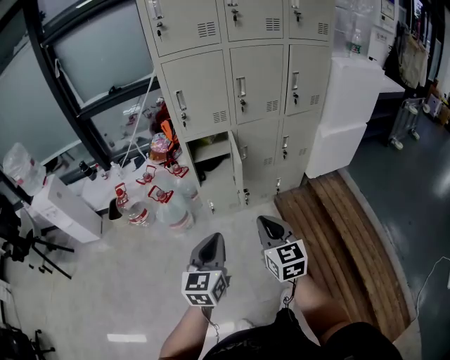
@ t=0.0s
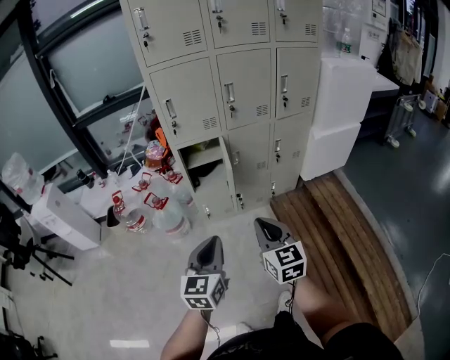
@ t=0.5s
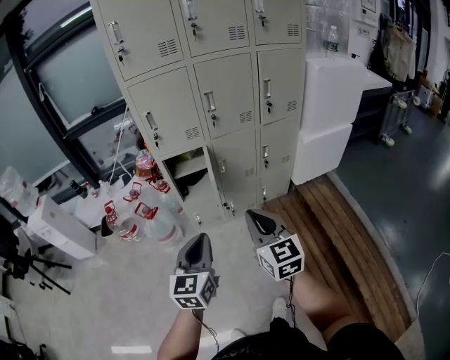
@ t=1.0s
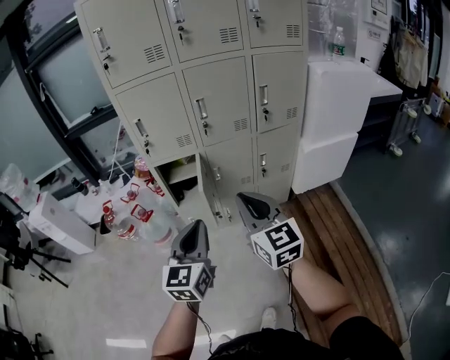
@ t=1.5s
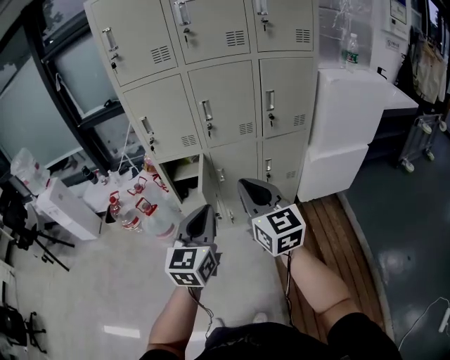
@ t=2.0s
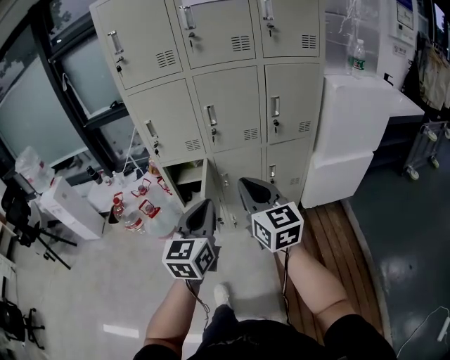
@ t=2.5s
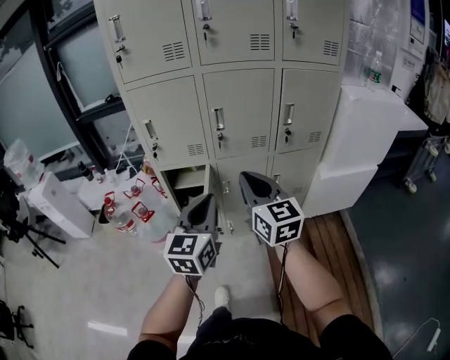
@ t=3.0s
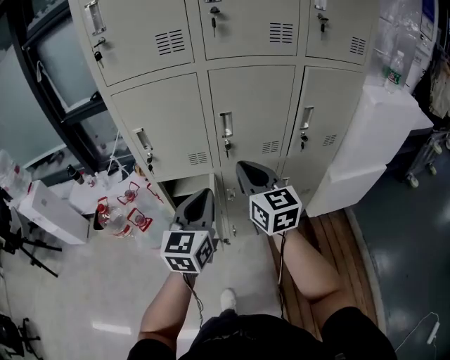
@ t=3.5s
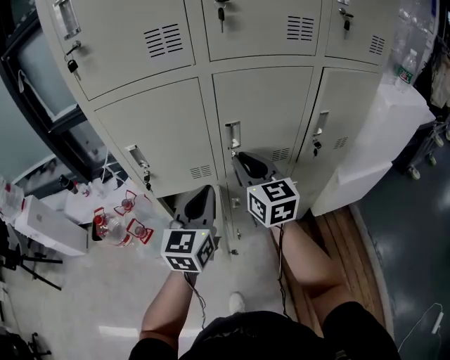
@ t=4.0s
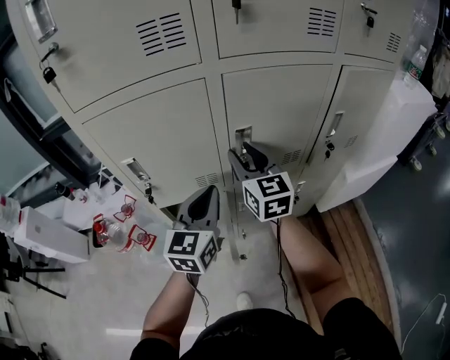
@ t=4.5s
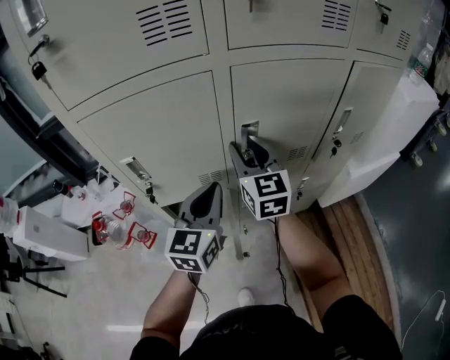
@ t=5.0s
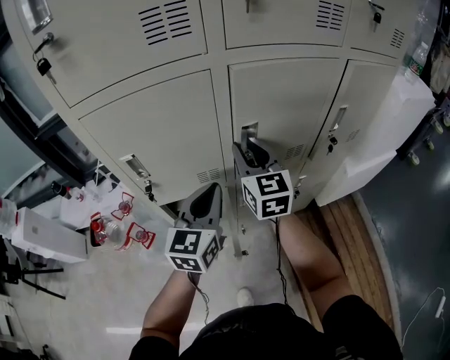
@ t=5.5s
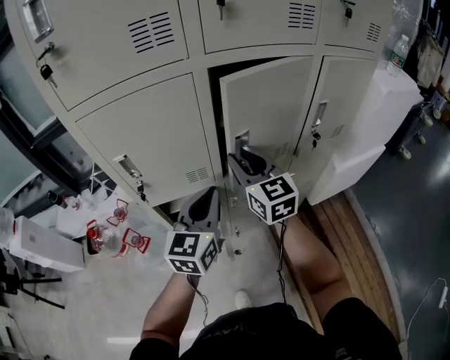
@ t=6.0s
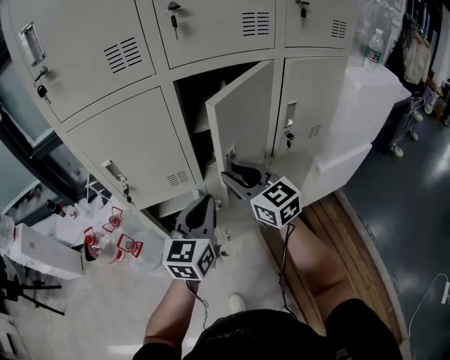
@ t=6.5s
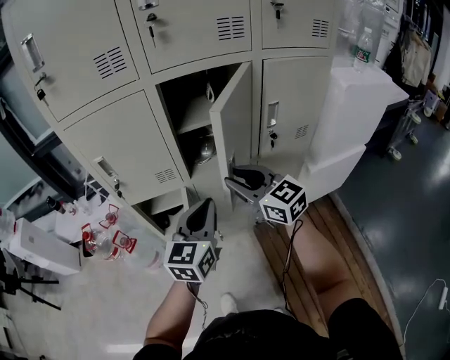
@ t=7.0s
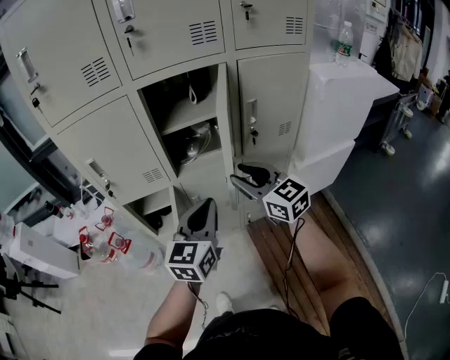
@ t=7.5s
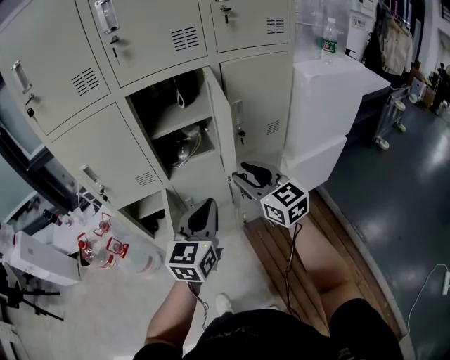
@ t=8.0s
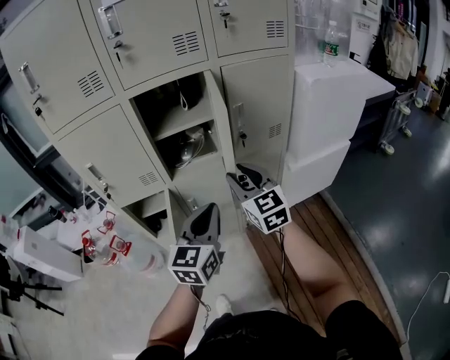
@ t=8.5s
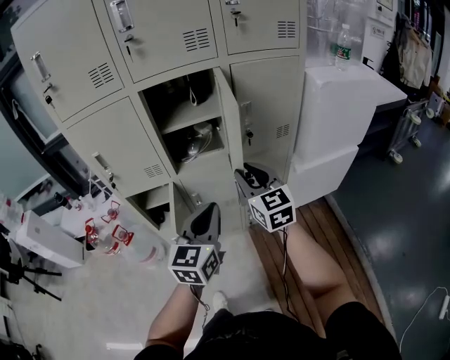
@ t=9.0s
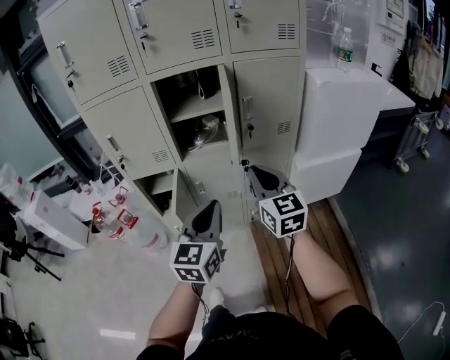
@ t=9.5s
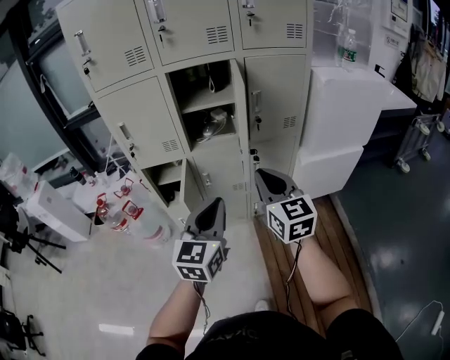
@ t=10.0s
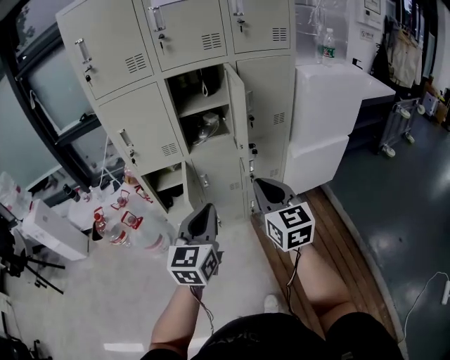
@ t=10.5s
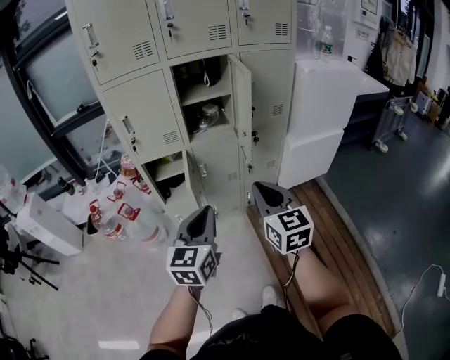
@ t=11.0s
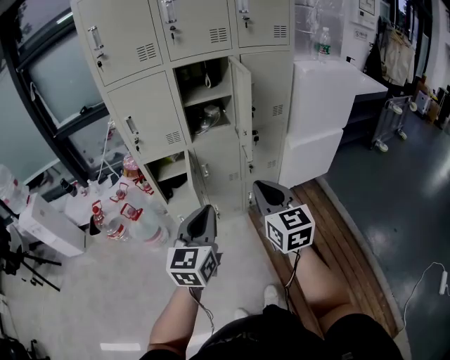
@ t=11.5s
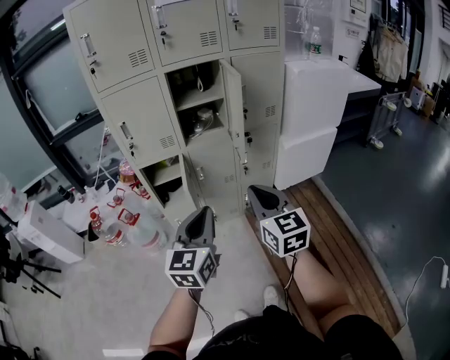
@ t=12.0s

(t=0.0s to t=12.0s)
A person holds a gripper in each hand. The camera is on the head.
t=0.0s - t=2.0s: The right gripper shifts about 30 cm to the right, upward and forward. Meanwhile the left gripper is displaced to the right, forward and upward by roughly 30 cm.
t=2.0s - t=4.0s: The two grippers go about 40 cm forward.
t=4.0s - t=6.0s: The right gripper goes forward and returns, some 10 cm each way.
t=6.0s - t=8.0s: The grippers both shift to the right and backward by roughly 25 cm.
t=8.0s - t=10.0s: The two grippers go about 15 cm backward. The right gripper closes up.
t=10.0s - t=12.0s: The two grippers go roughly 15 cm backward and to the left.

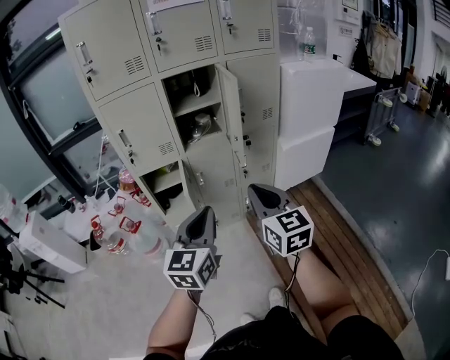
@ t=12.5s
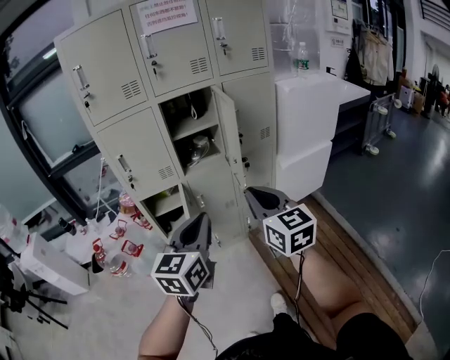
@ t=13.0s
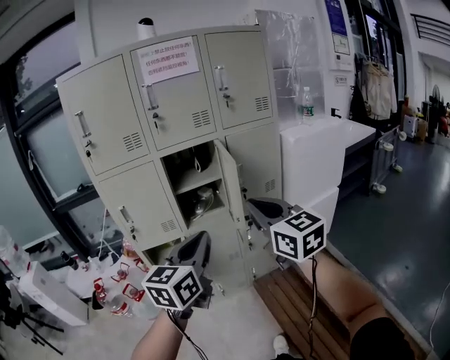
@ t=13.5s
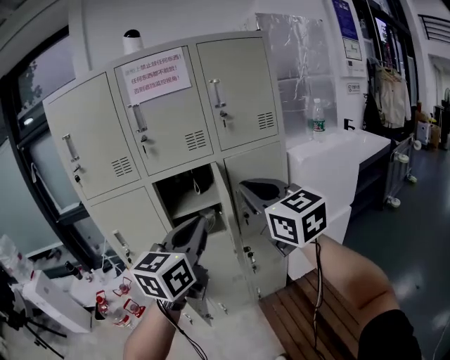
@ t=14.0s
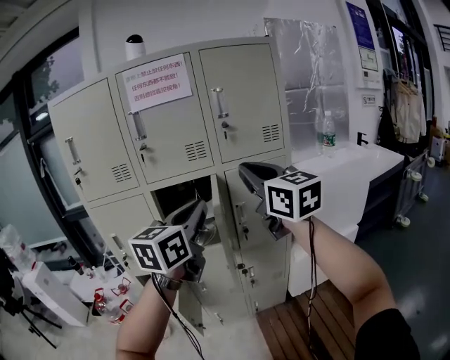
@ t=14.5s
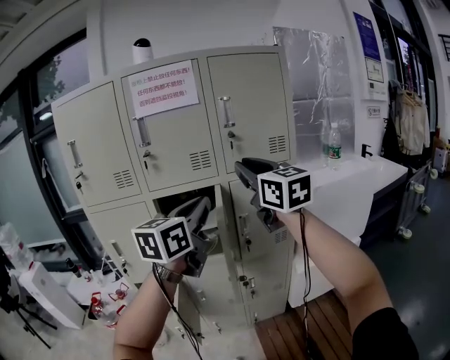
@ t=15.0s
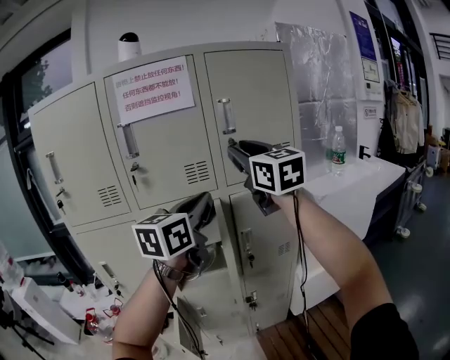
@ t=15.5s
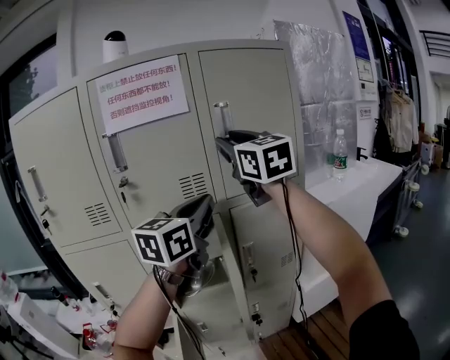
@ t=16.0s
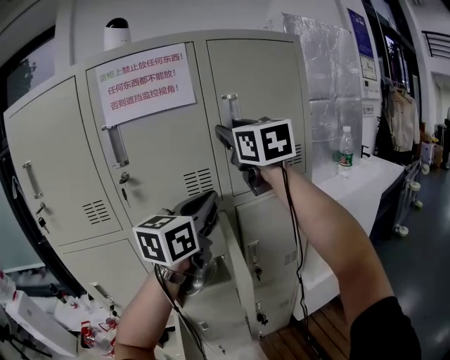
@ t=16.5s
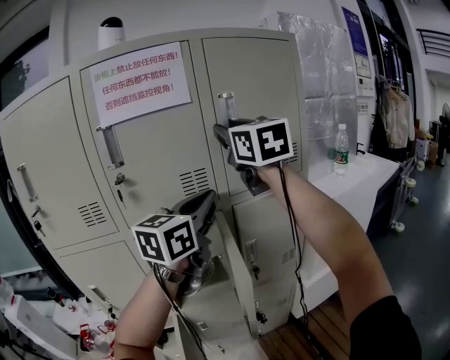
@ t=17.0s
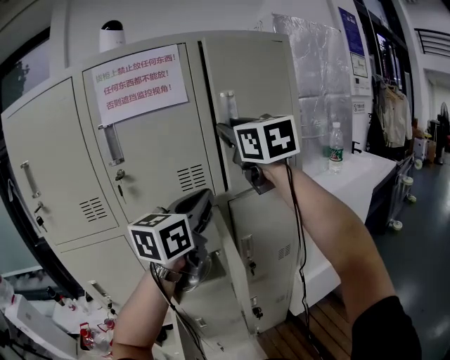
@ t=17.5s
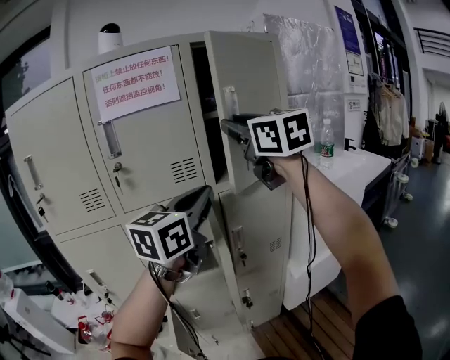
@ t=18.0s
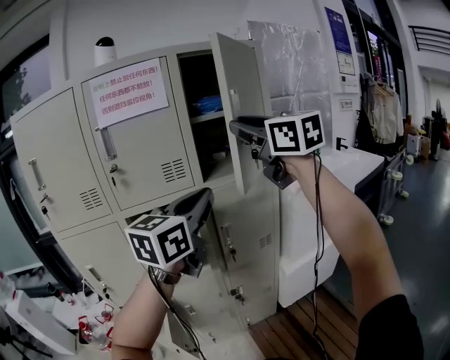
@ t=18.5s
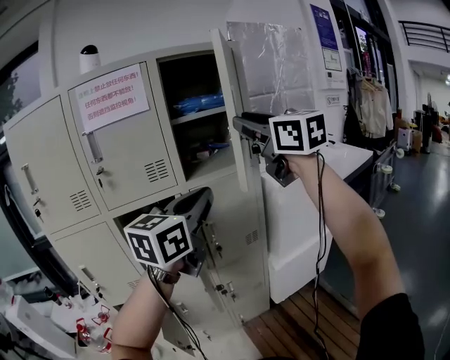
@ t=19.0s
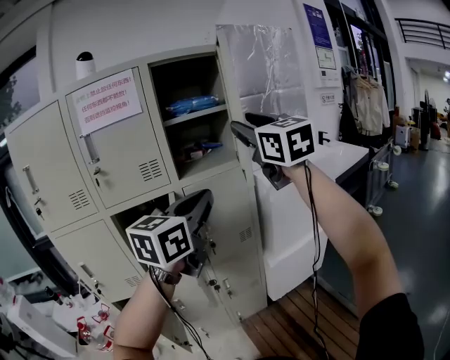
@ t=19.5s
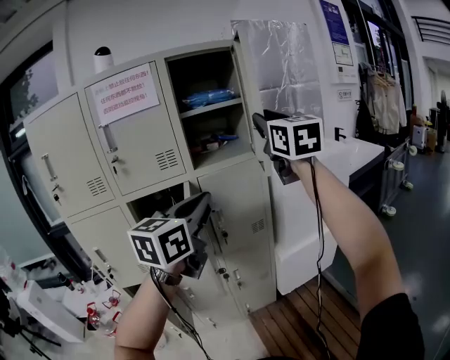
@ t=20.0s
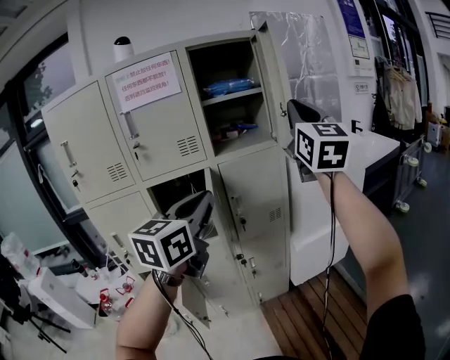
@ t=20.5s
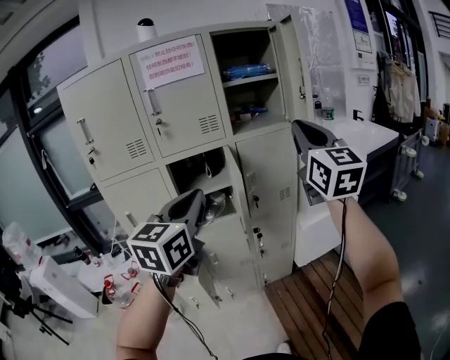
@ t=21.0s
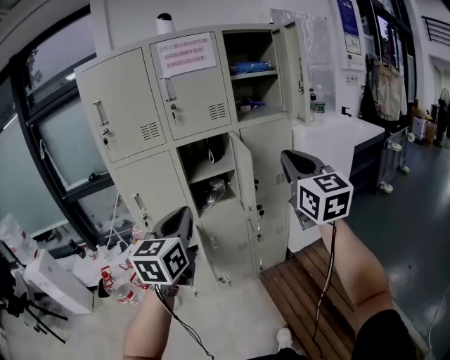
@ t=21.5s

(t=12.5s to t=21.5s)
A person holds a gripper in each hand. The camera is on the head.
t=12.5s - t=14.5s: The right gripper travels forward and upward by approximately 40 cm, and rotates about 20 degrees, while the left gripper heads forward, upward and to the right, covering approximately 40 cm.
t=14.5s - t=17.0s: The left gripper travels forward by roughly 20 cm, while the right gripper shifts some 25 cm forward and upward, and opens its fingers.
t=17.0s - t=19.5s: The left gripper moves backward and to the right, some 25 cm, while the right gripper is displaced to the right and backward by approximately 25 cm.
t=19.5s - t=21.5s: The right gripper travels backward, downward and to the left by approximately 35 cm, and closes its fingers; the left gripper shifts approximately 35 cm to the left and backward, and changes its angle by approximately 20 degrees.

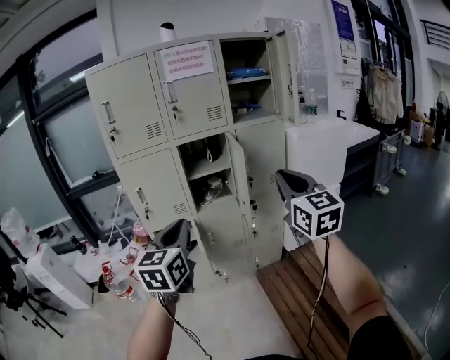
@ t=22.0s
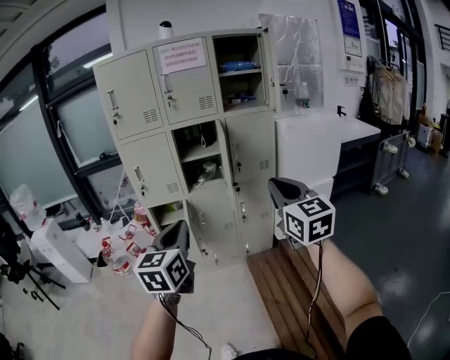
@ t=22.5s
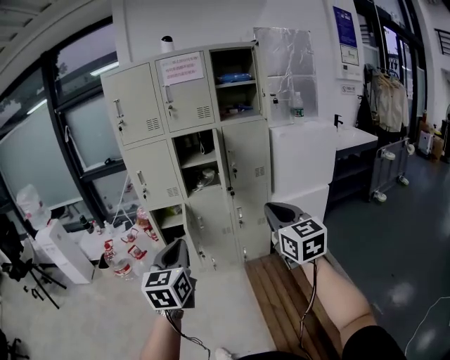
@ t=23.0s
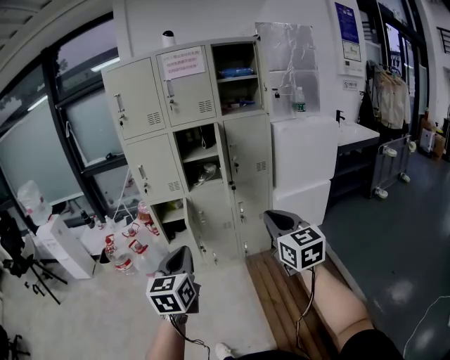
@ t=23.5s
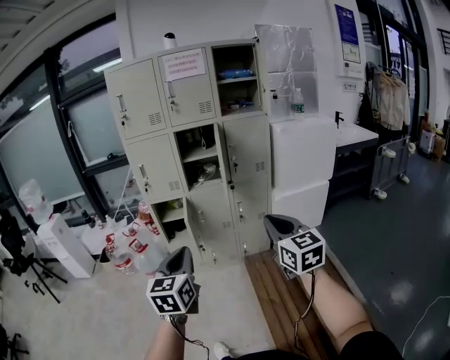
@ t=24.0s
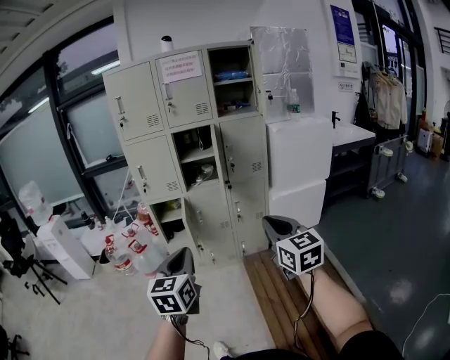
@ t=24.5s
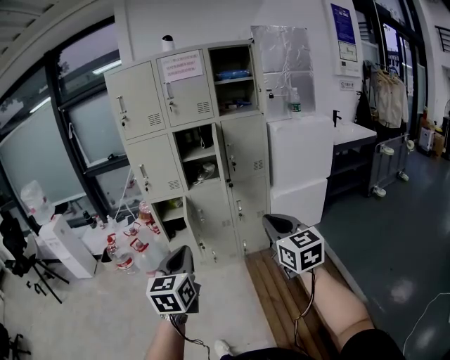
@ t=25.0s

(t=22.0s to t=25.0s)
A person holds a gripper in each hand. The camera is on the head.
t=22.0s - t=23.5s: Both grippers travel together backward and downward, roughly 25 cm.
t=23.5s - t=25.0s: The right gripper goes approximately 5 cm backward.

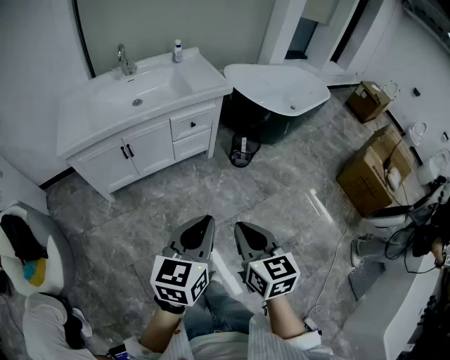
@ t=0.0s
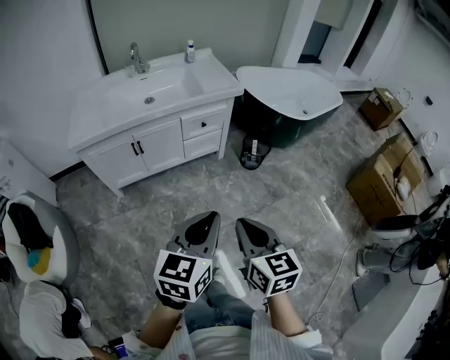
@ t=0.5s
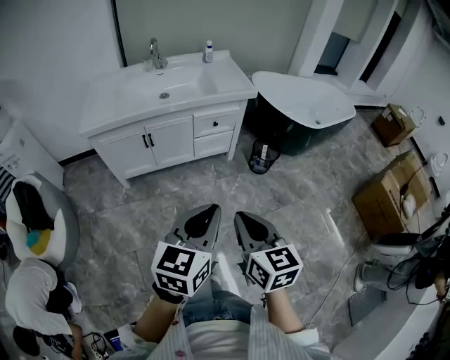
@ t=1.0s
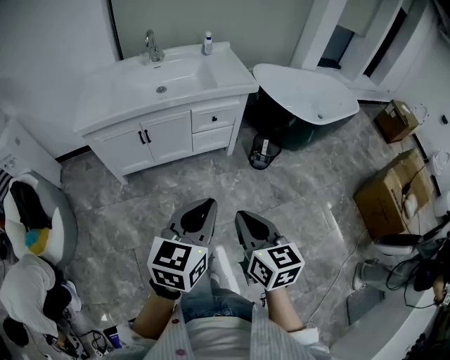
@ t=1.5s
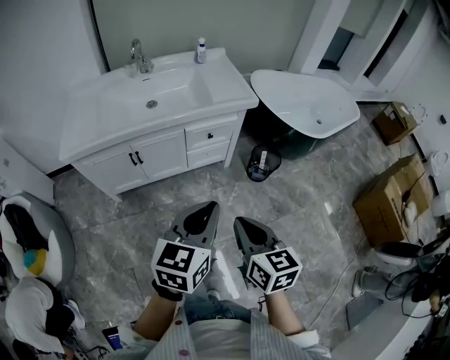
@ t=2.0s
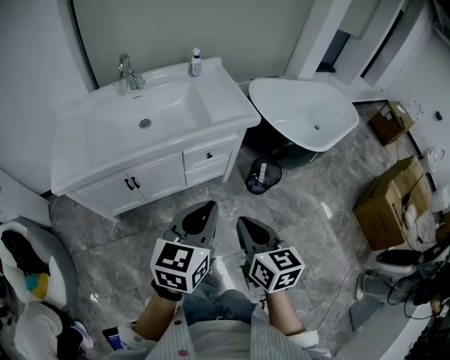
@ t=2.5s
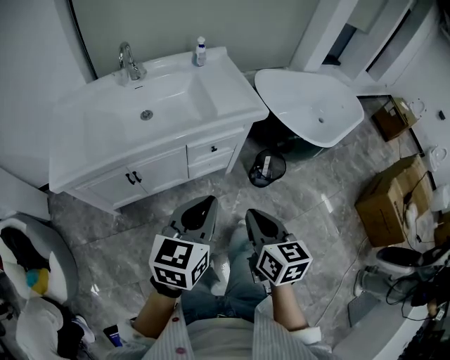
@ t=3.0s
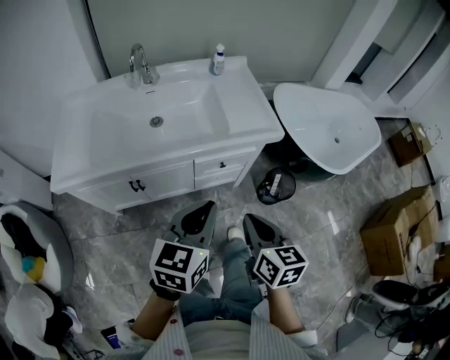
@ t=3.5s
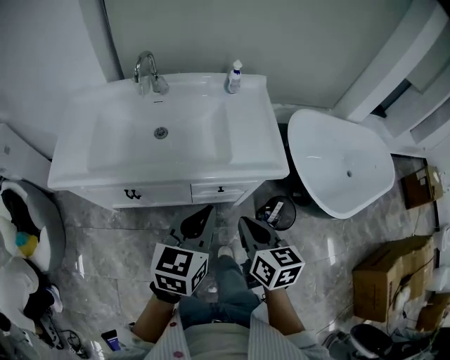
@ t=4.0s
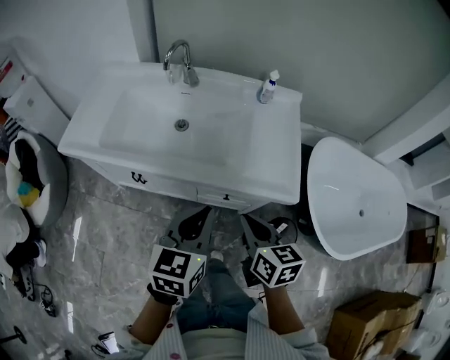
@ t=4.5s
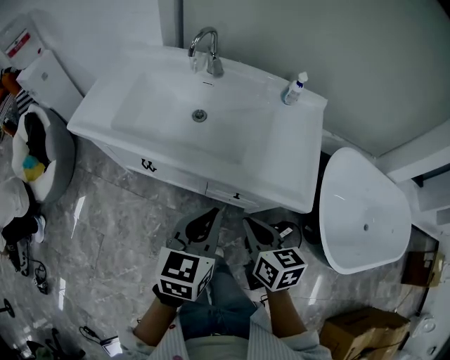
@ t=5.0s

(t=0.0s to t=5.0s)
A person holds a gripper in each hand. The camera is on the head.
t=0.0s - t=2.5s: Both grippers move forward, some 30 cm.
t=2.5s - t=5.0s: The right gripper changes place by approximately 30 cm, and swivels some 40 degrees, while the left gripper moves approximately 25 cm, and turns by approximately 40 degrees.
